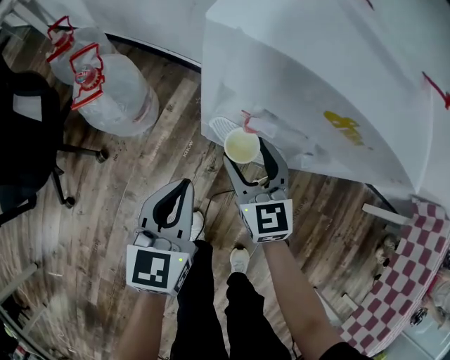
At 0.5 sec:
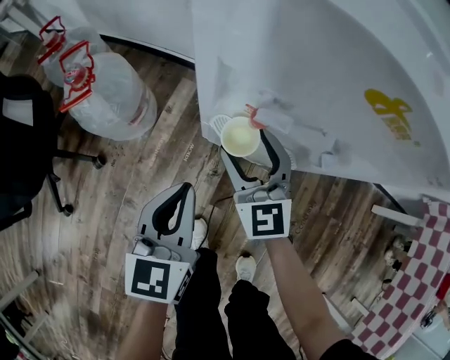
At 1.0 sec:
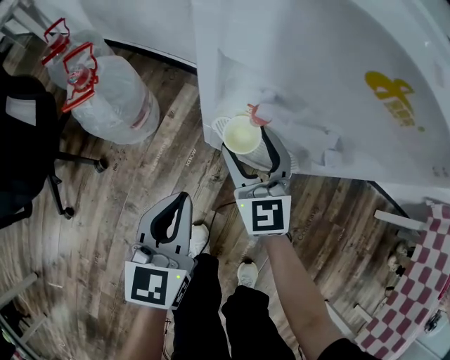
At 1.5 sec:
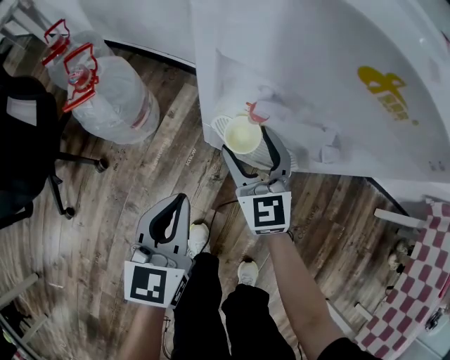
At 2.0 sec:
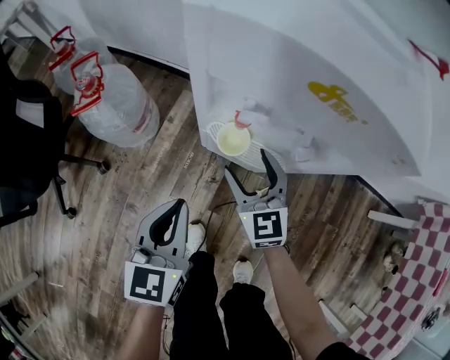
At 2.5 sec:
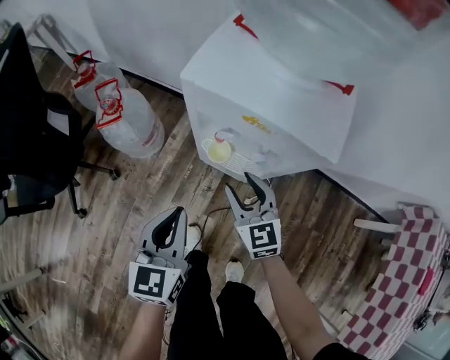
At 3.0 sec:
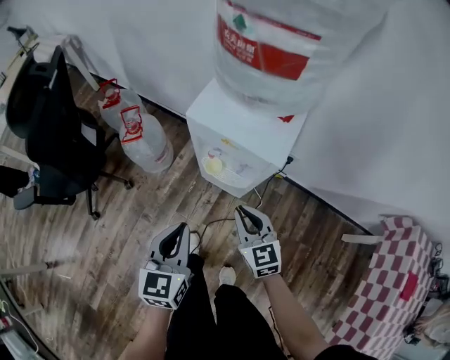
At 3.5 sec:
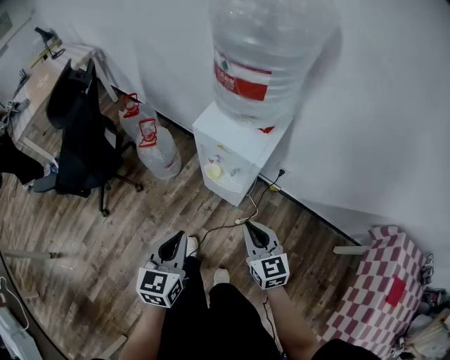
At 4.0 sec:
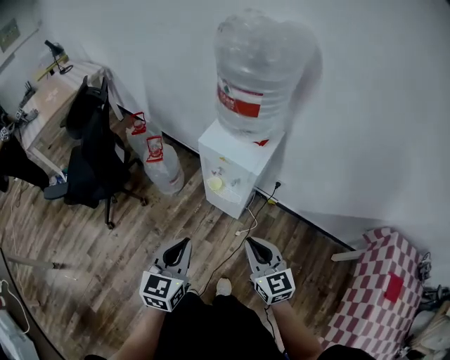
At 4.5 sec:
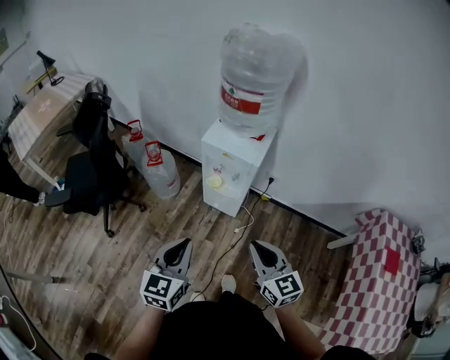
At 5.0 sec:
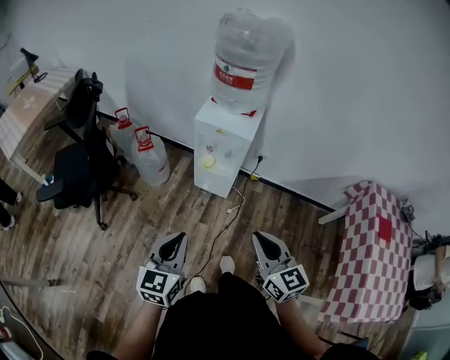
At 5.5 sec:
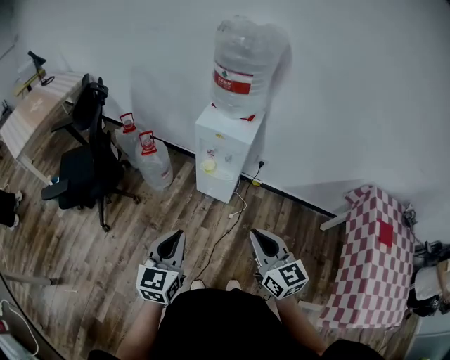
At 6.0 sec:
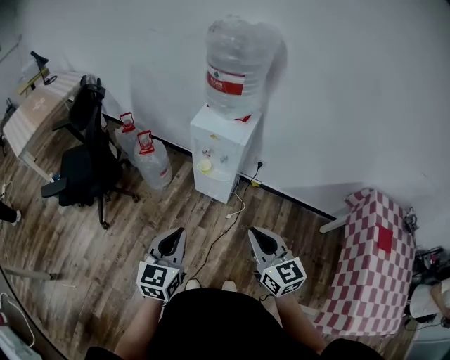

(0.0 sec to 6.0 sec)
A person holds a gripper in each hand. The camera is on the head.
0.0 sec - 2.0 sec: The grippers stay close to where they were, moving slightly.
2.0 sec - 4.0 sec: Both grippers travel together upward and backward, about 50 cm. The right gripper closes up.
4.0 sec - 6.0 sec: The left gripper shifts about 15 cm backward. The right gripper is displaced backward and upward by roughly 15 cm.

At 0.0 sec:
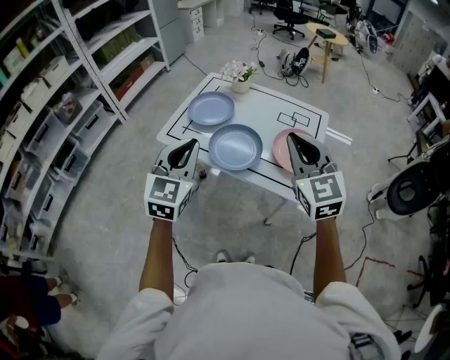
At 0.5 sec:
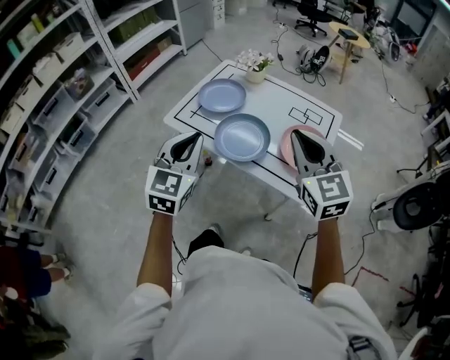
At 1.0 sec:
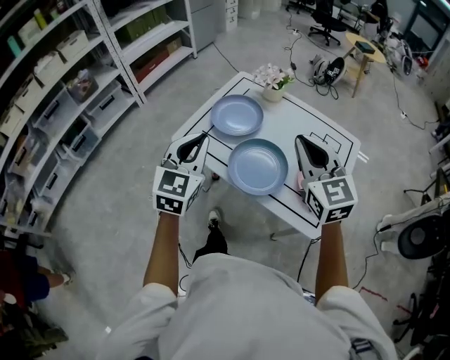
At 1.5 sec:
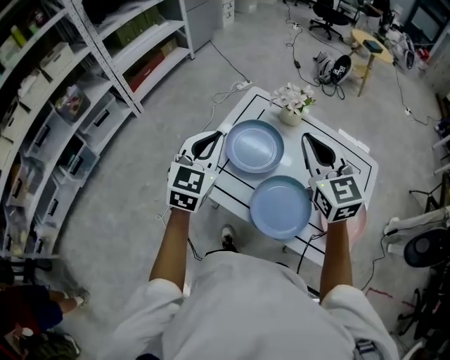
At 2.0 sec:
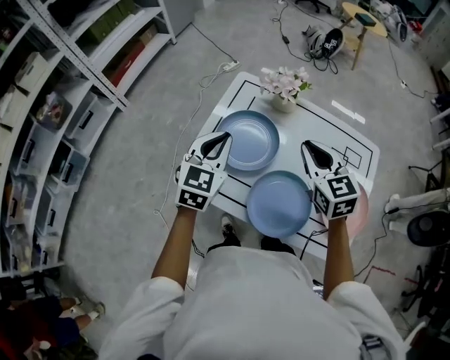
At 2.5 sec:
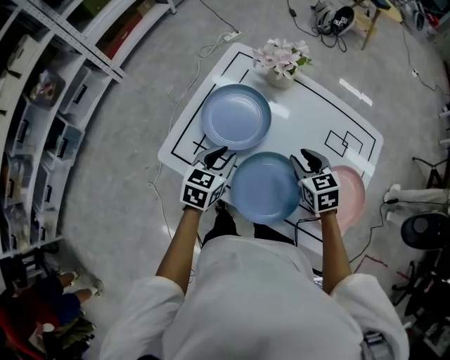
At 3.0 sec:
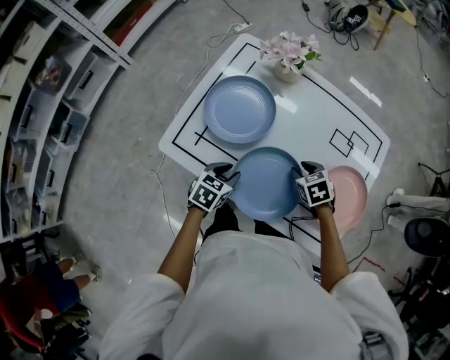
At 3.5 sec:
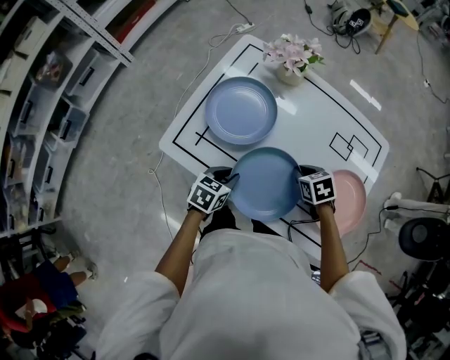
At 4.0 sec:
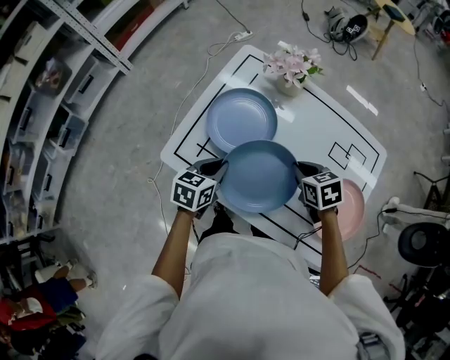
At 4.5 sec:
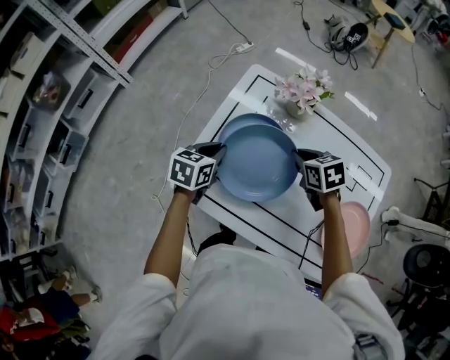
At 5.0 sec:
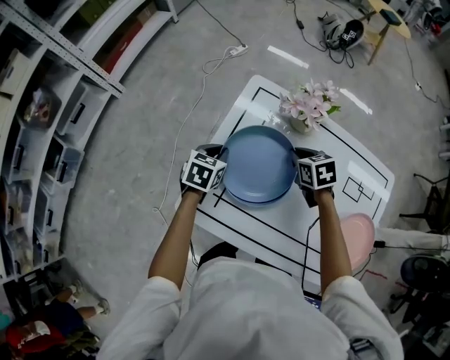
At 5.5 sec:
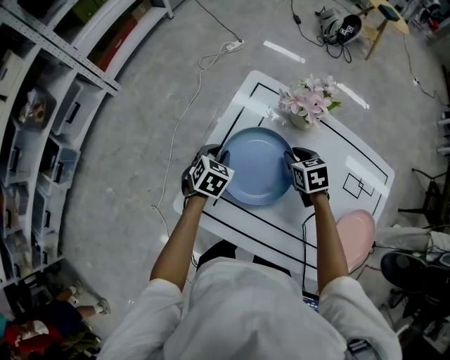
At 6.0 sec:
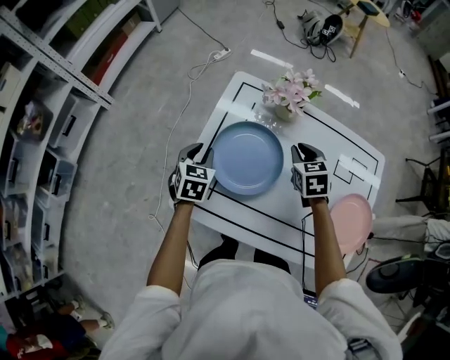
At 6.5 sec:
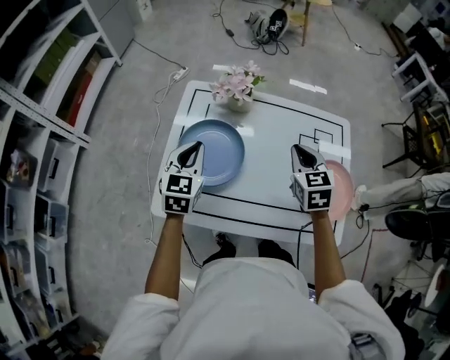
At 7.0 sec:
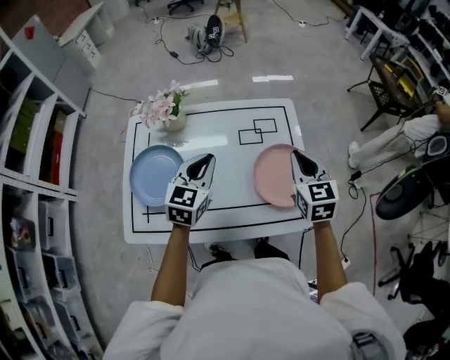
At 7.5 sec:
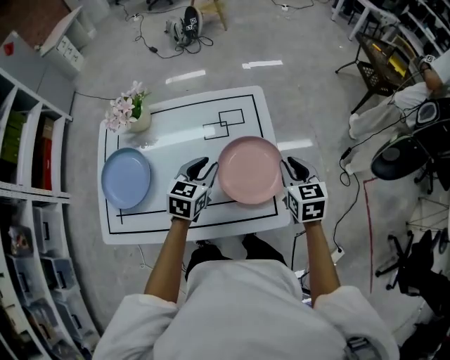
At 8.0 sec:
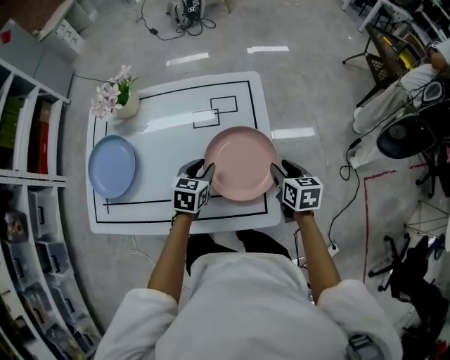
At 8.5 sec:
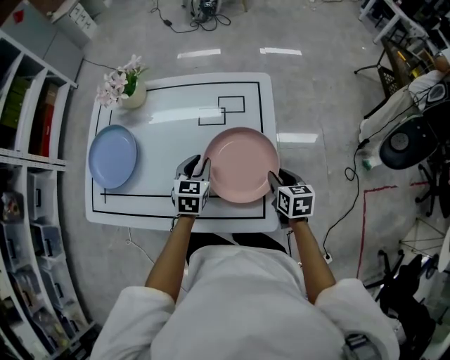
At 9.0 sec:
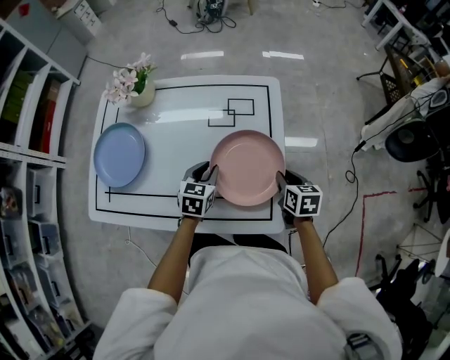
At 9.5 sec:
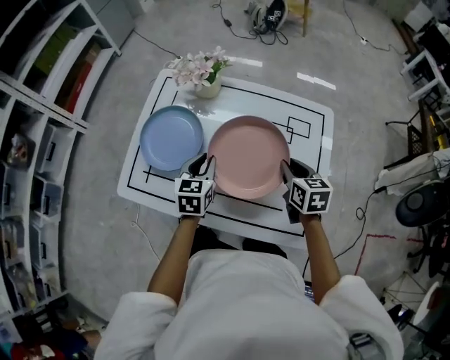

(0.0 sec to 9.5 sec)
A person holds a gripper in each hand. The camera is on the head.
0.0 sec - 2.0 sec: Both grippers travel together forward, some 40 cm. The right gripper changes its angle by approximately 20 degrees.
2.0 sec - 4.0 sec: The two grippers go roughly 20 cm downward. The right gripper swivels roughly 40 degrees, and opens, then closes again, while the left gripper swivels roughly 40 degrees, and opens, then closes again.
4.0 sec - 5.5 sec: The two grippers go some 20 cm forward and to the left. The left gripper rotates approximately 30 degrees.
5.5 sec - 7.5 sec: The two grippers travel together, approximately 50 cm. The left gripper swivels roughly 40 degrees. Meanwhile the right gripper rotates approximately 50 degrees.
7.5 sec - 9.5 sec: The left gripper travels downward and back again, approximately 10 cm each way, and swivels approximately 30 degrees, while the right gripper travels downward and back again, approximately 15 cm each way, and rotates roughly 20 degrees.

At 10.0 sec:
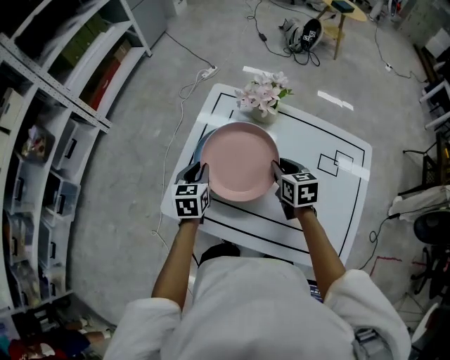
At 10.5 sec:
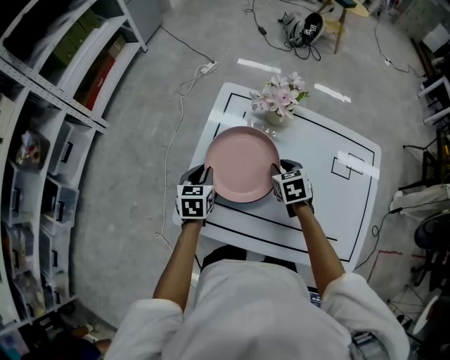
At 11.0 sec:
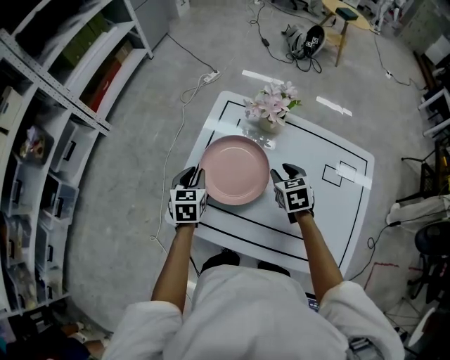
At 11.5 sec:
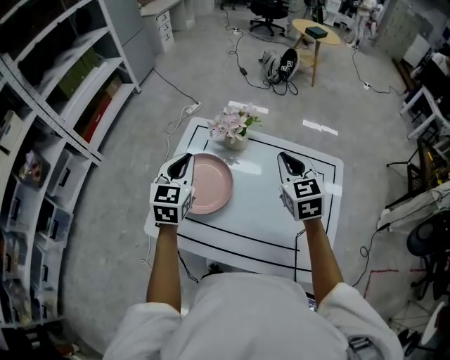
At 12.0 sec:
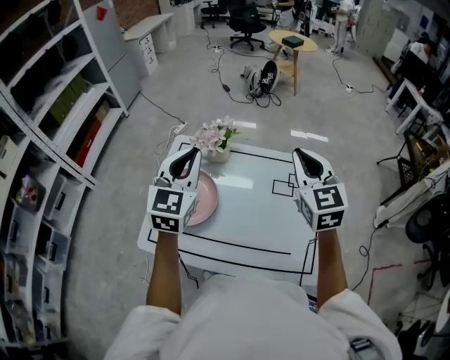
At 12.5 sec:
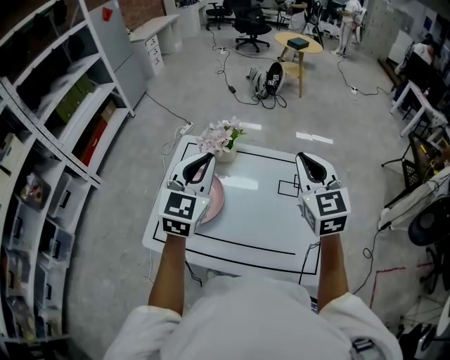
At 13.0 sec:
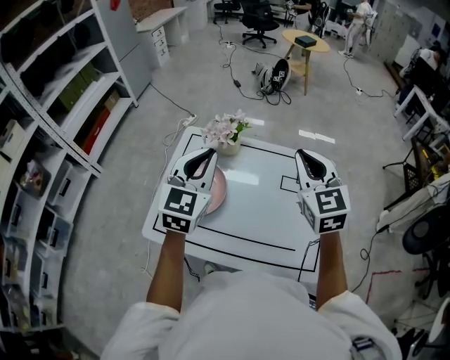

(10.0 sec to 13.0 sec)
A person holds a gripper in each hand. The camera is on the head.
10.0 sec - 11.5 sec: The left gripper moves upward, about 20 cm, and changes its angle by roughly 30 degrees; the right gripper shifts roughly 20 cm upward and to the right, turns by some 30 degrees, and opens, then closes once more.
11.5 sec - 13.0 sec: The left gripper goes about 15 cm to the right and upward, while the right gripper goes about 15 cm upward, to the right and backward.

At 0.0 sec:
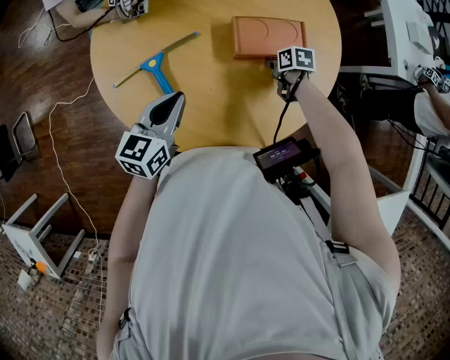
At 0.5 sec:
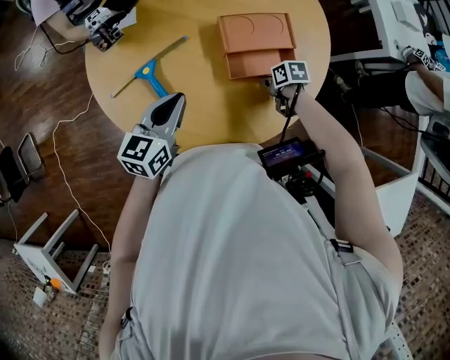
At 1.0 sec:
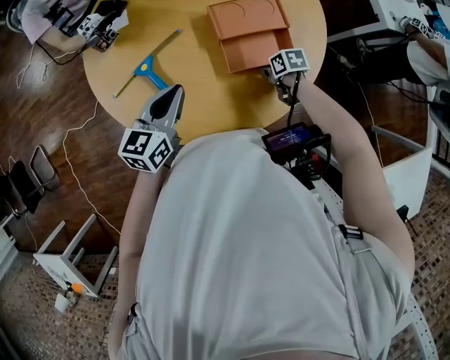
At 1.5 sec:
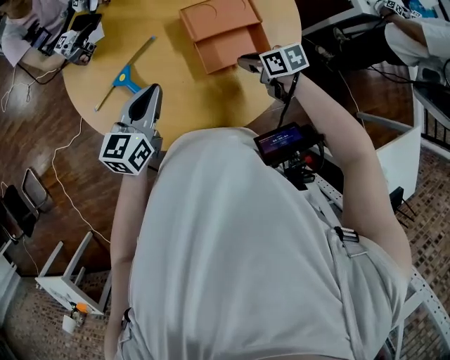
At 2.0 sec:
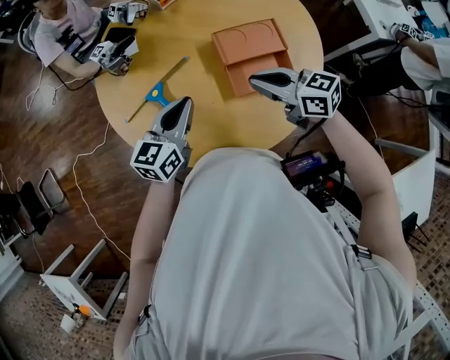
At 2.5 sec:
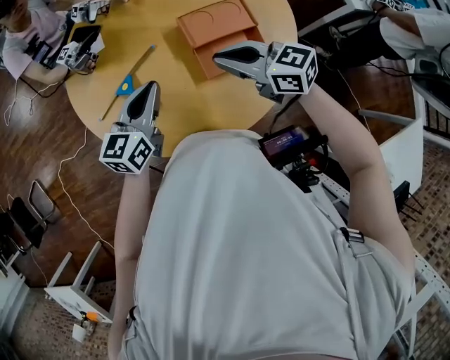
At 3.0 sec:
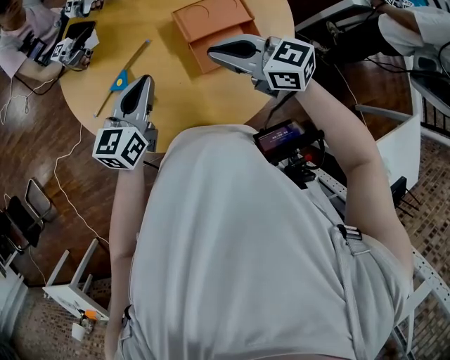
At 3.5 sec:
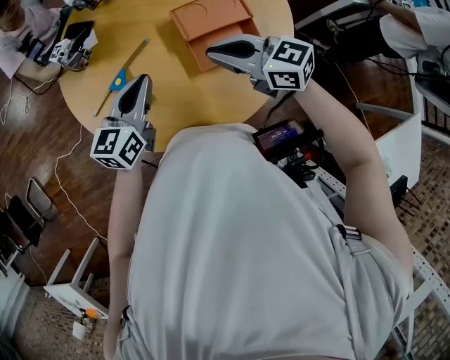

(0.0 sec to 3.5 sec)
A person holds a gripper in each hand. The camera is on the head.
0.0 sec - 2.0 sec: The left gripper moves some 5 cm. The right gripper moves upward, approximately 25 cm, and tips its fingers upward by approximately 50 degrees.

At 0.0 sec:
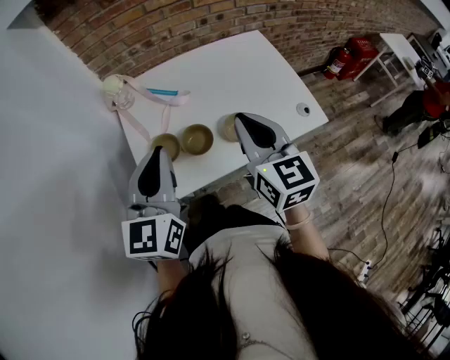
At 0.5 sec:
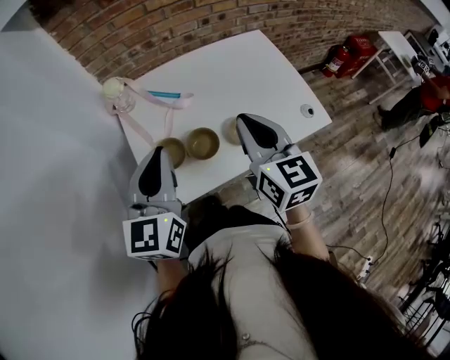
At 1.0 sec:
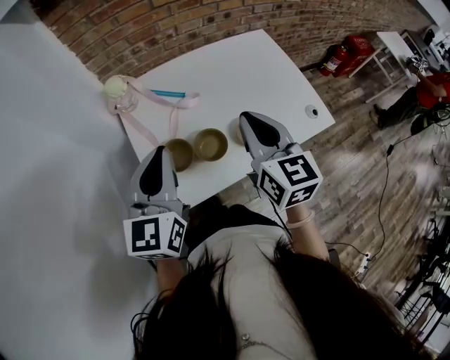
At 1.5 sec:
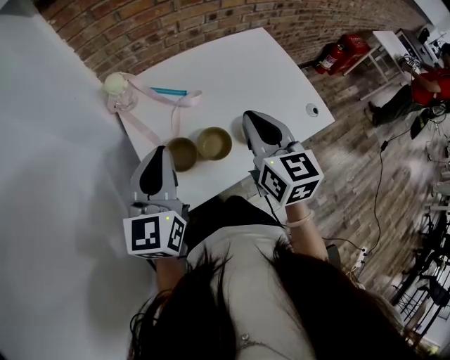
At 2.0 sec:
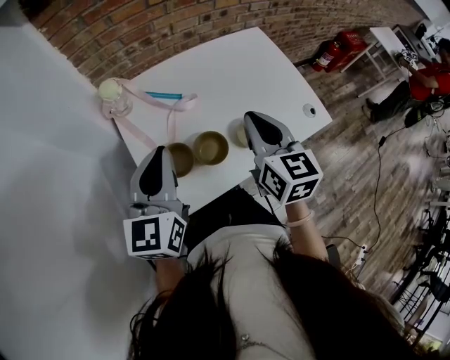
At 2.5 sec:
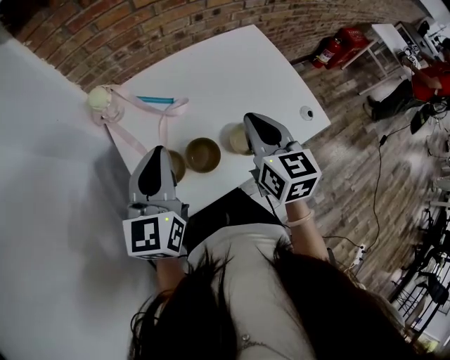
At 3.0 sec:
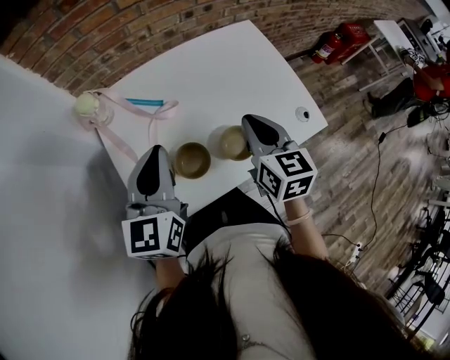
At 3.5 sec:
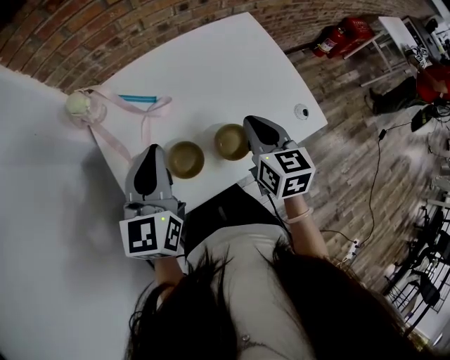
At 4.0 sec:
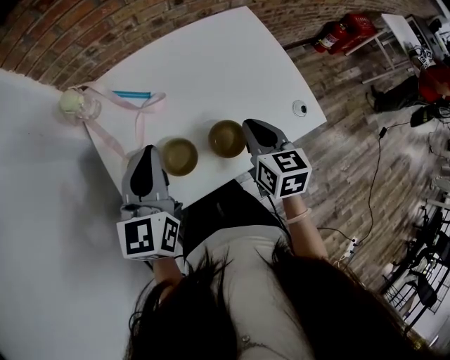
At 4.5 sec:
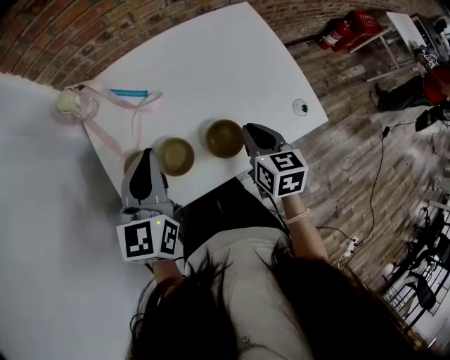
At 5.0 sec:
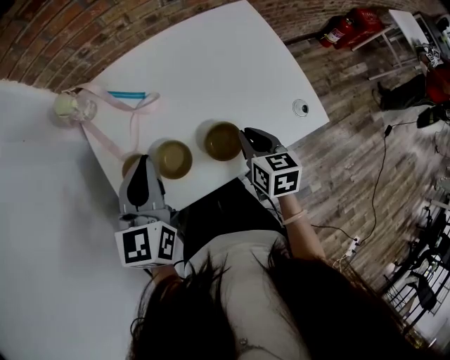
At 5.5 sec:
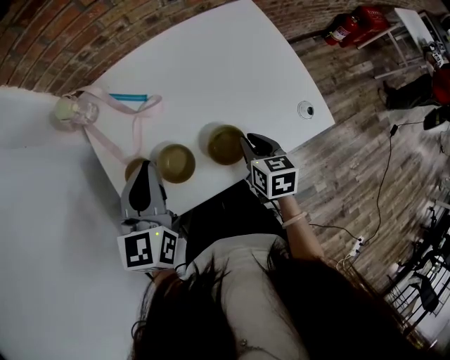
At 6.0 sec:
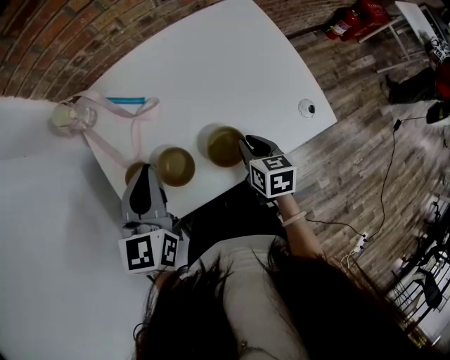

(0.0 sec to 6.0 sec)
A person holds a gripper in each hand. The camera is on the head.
0.0 sec - 2.0 sec: The left gripper goes approximately 10 cm forward and to the left; the right gripper is displaced forward by some 5 cm.
2.0 sec - 4.0 sec: The right gripper is displaced downward and to the right by some 15 cm; the left gripper shifts approximately 10 cm to the right and forward.
4.0 sec - 6.0 sec: The right gripper moves downward, about 15 cm.
